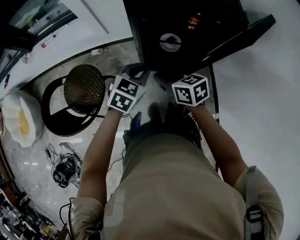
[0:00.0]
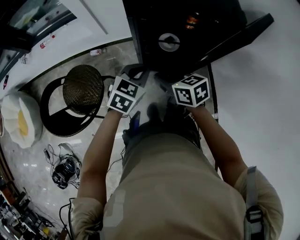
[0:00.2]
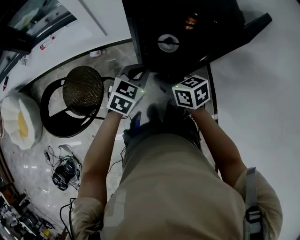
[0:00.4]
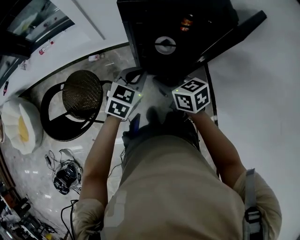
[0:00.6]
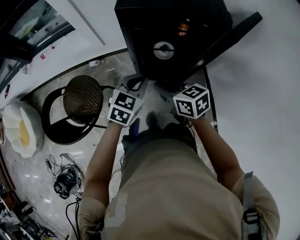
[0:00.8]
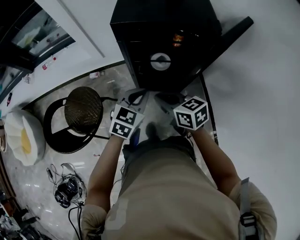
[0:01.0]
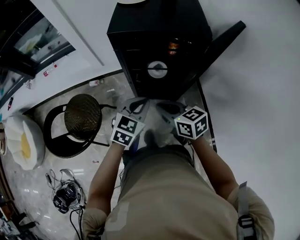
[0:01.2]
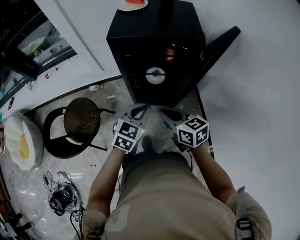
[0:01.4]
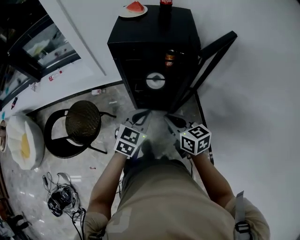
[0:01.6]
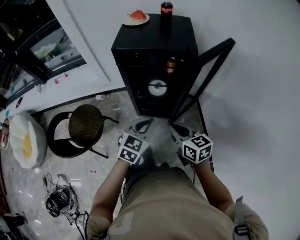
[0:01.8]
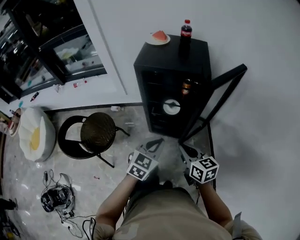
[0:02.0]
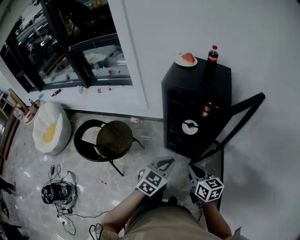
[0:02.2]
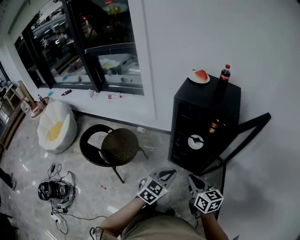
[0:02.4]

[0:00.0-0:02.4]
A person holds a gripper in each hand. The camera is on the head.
0.0 to 1.2 s: The right gripper moves to the right, backward and upward, approximately 10 cm. The left gripper moves backward, about 5 cm.
1.2 to 2.4 s: The two grippers go about 10 cm backward.

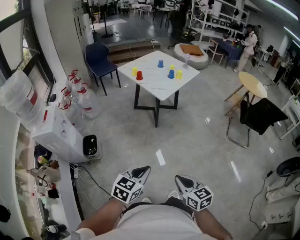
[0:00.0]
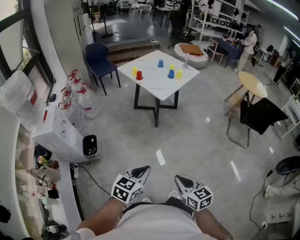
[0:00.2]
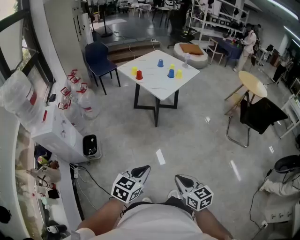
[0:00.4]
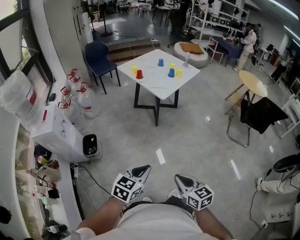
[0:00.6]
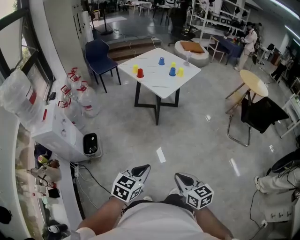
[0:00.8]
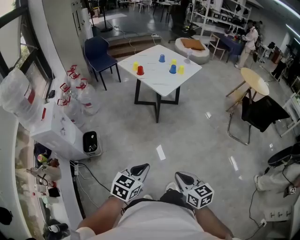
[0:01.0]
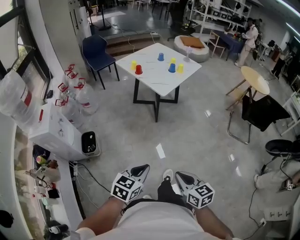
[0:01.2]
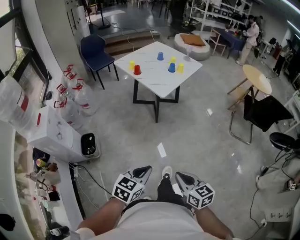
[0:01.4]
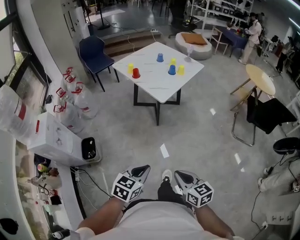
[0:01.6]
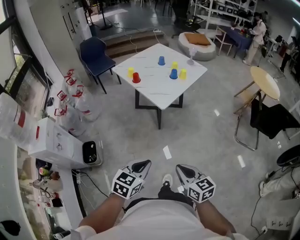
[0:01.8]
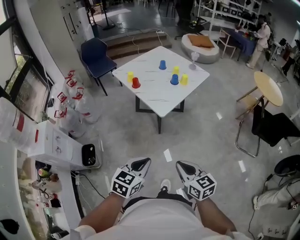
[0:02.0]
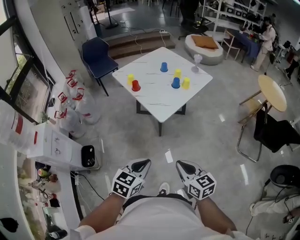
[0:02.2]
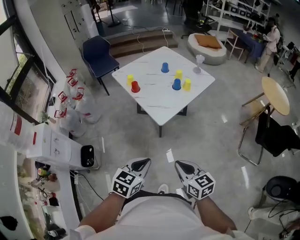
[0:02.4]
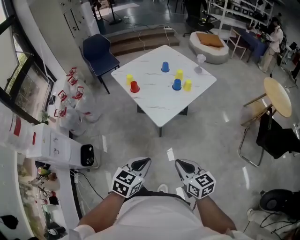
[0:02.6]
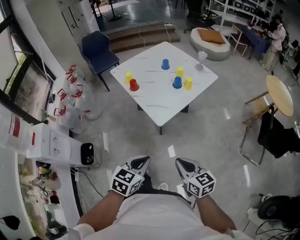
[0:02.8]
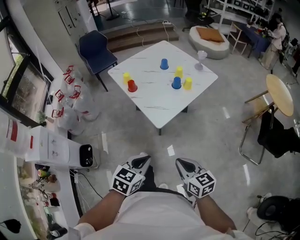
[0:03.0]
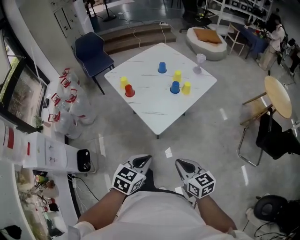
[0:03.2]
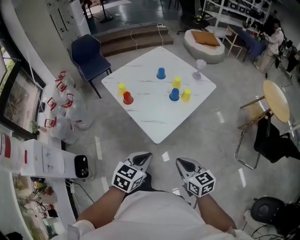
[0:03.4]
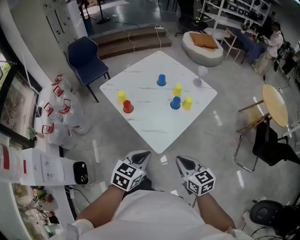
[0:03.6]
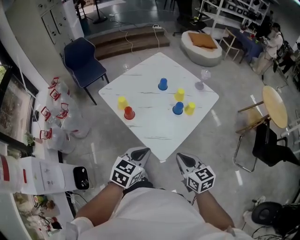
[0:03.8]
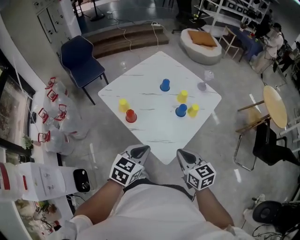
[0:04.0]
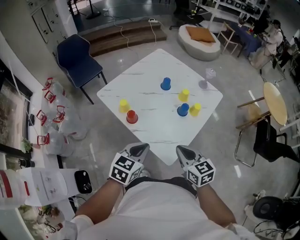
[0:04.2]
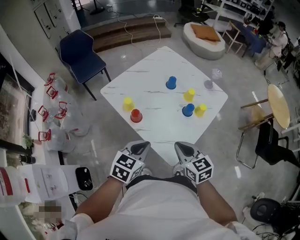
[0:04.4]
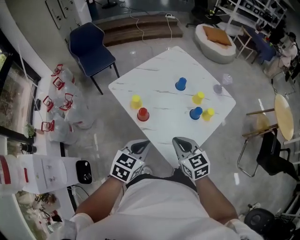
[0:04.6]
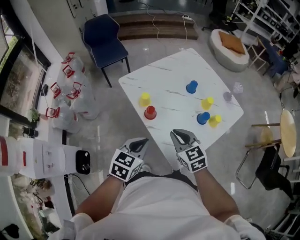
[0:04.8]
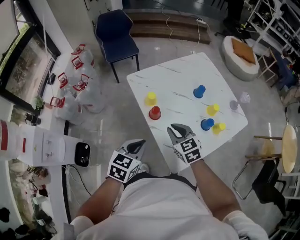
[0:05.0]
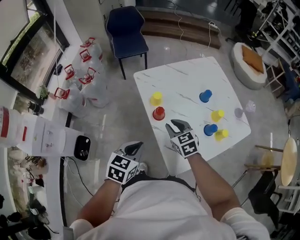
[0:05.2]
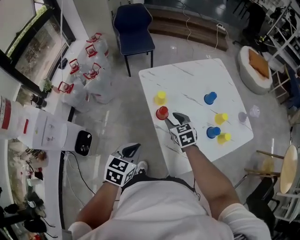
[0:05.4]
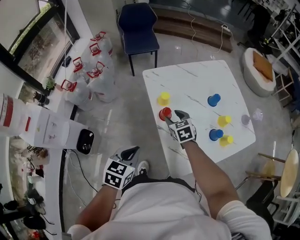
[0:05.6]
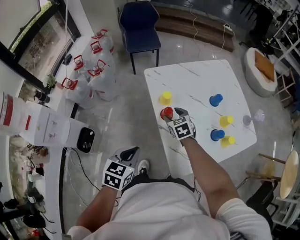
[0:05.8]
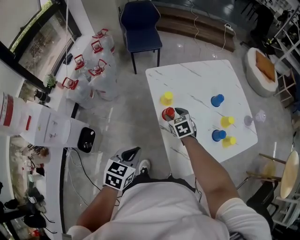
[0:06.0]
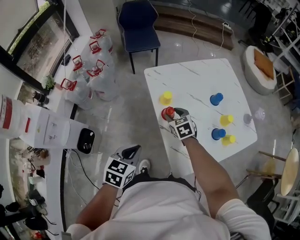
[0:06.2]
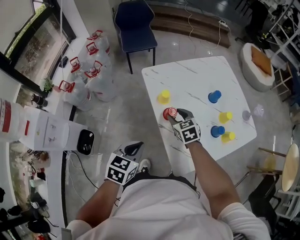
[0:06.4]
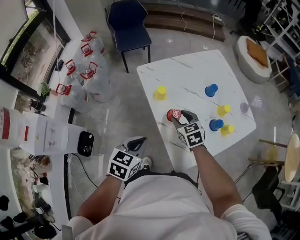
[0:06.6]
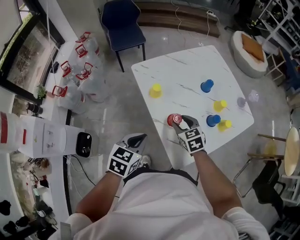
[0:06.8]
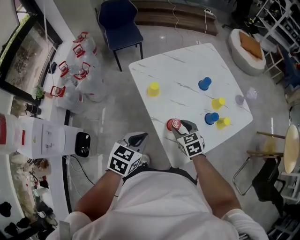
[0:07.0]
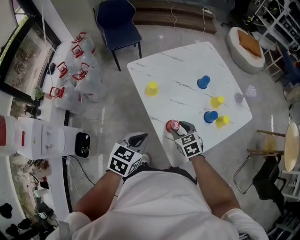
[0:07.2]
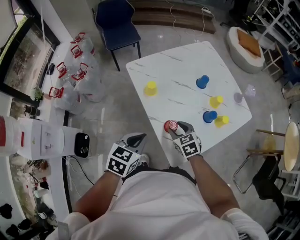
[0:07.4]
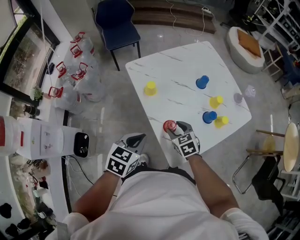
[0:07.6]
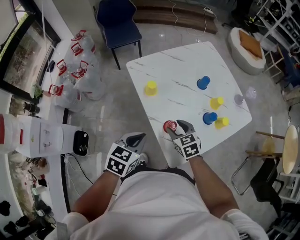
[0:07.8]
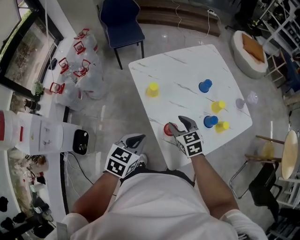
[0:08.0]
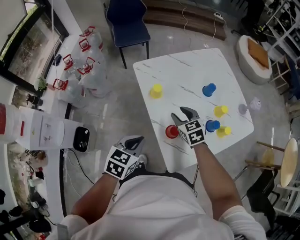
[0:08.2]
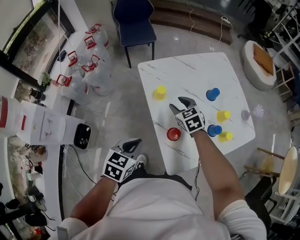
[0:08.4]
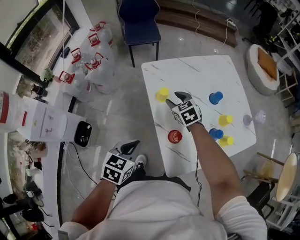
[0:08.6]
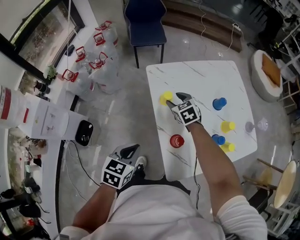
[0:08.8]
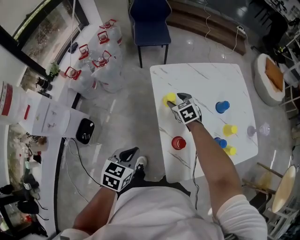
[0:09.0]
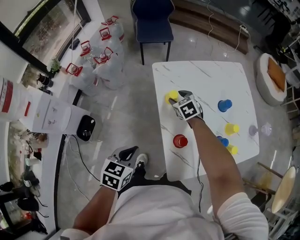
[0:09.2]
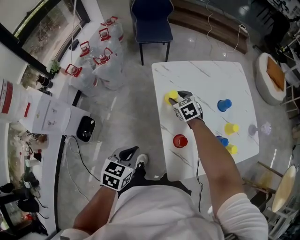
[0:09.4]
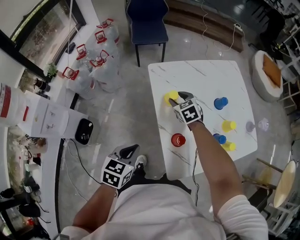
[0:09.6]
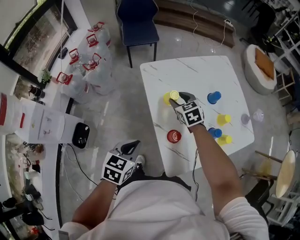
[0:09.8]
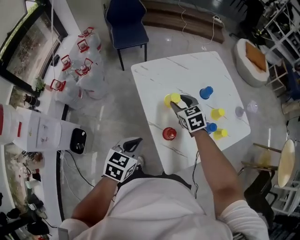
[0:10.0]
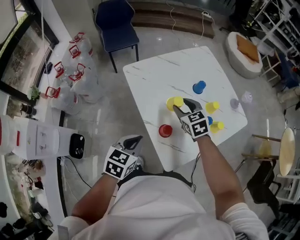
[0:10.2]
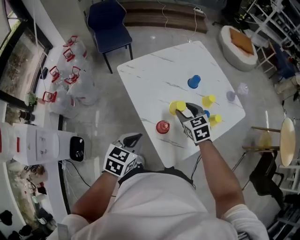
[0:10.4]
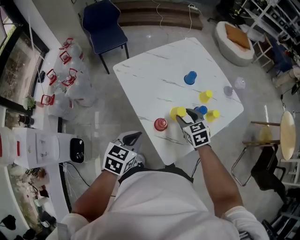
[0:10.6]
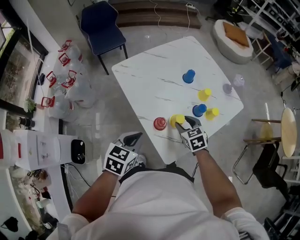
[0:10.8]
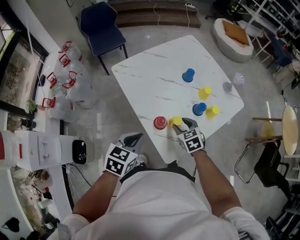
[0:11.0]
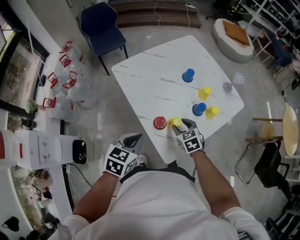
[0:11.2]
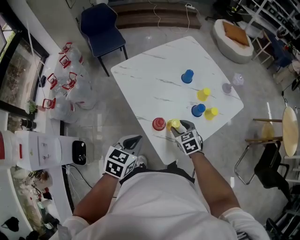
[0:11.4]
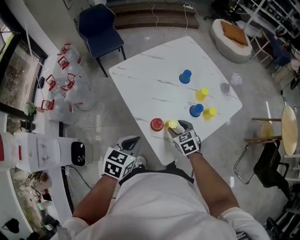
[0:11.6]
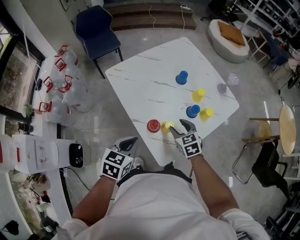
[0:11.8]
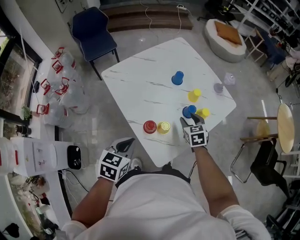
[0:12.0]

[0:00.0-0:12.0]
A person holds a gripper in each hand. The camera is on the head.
0.0 to 1.6 s: The grippers both shift forward by some 15 cm.
1.6 to 3.0 s: The two grippers go about 30 cm forward.
3.0 to 4.4 s: Both grippers move forward and to the left, roughly 35 cm.
4.4 to 6.0 s: The left gripper moves about 15 cm, and swivels about 40 degrees, while the right gripper changes place by some 30 cm, turns by approximately 40 degrees, and opens its fingers.
6.0 to 7.6 s: The left gripper heads to the right, covering about 5 cm, while the right gripper shifts roughly 15 cm backward and to the right.
7.6 to 9.0 s: The right gripper moves forward and to the left, about 25 cm. Meanwhile the left gripper is displaced to the left by roughly 5 cm, and rotates some 20 degrees.
9.0 to 10.4 s: The right gripper moves to the right, backward and upward, approximately 25 cm, and swivels some 20 degrees; the left gripper shifts some 10 cm to the right, and changes its angle by some 20 degrees.
10.4 to 12.0 s: The right gripper moves to the right and downward, some 15 cm.

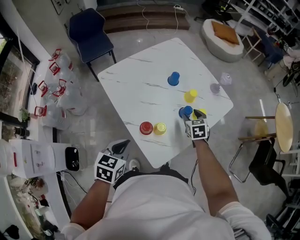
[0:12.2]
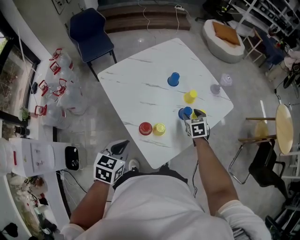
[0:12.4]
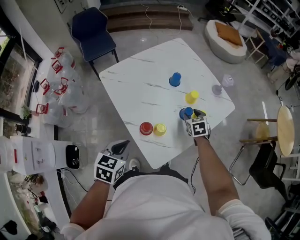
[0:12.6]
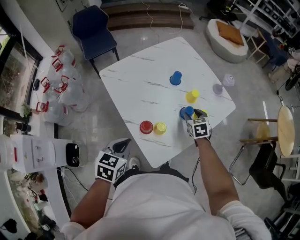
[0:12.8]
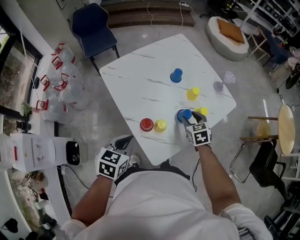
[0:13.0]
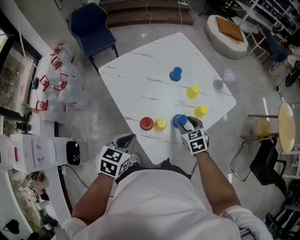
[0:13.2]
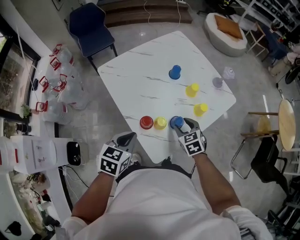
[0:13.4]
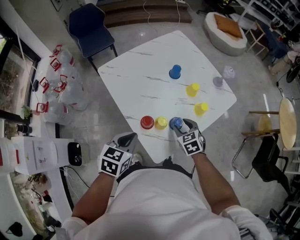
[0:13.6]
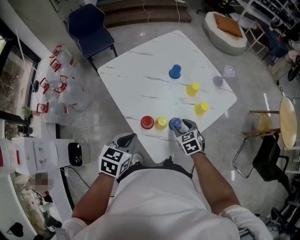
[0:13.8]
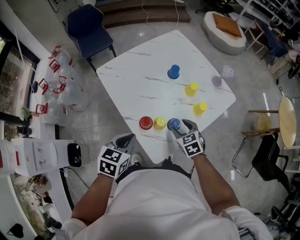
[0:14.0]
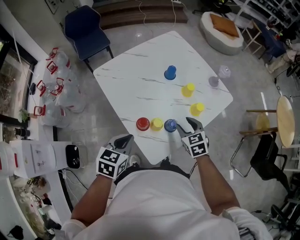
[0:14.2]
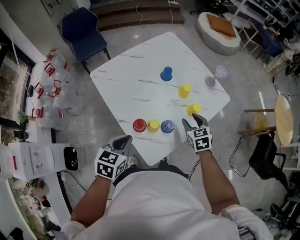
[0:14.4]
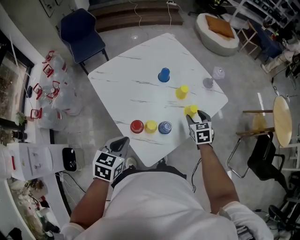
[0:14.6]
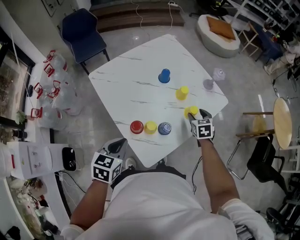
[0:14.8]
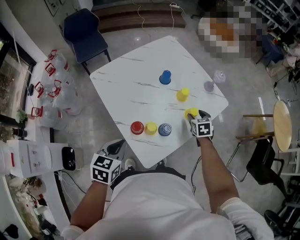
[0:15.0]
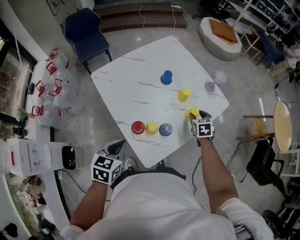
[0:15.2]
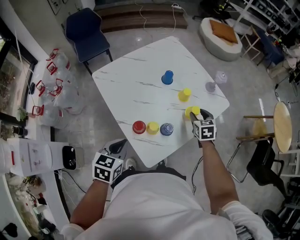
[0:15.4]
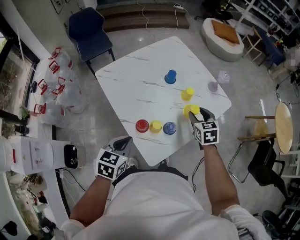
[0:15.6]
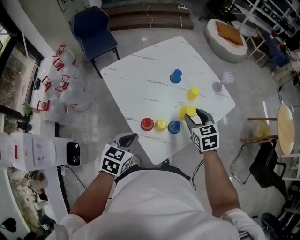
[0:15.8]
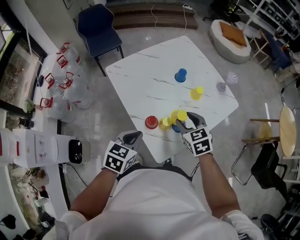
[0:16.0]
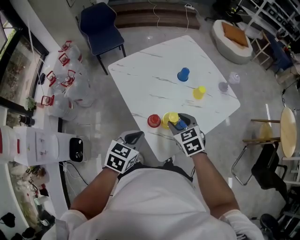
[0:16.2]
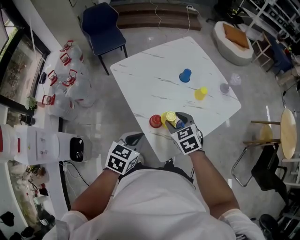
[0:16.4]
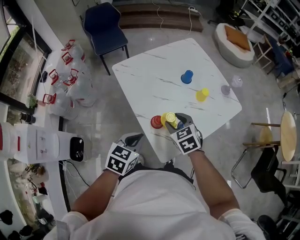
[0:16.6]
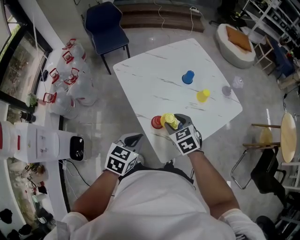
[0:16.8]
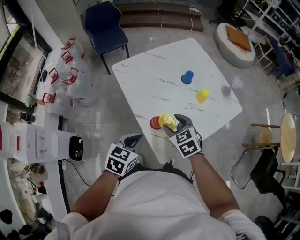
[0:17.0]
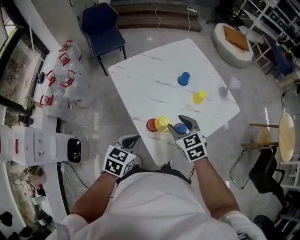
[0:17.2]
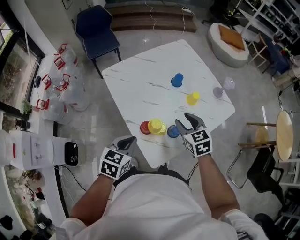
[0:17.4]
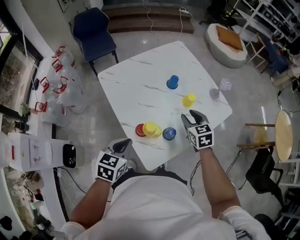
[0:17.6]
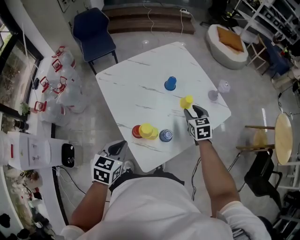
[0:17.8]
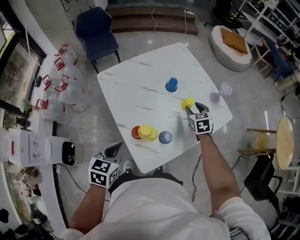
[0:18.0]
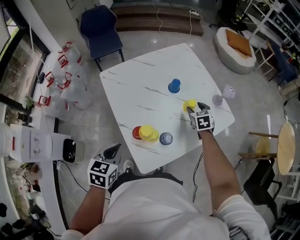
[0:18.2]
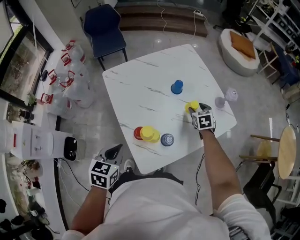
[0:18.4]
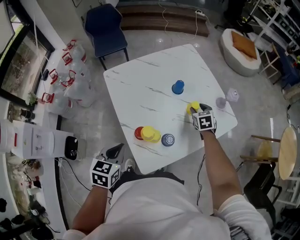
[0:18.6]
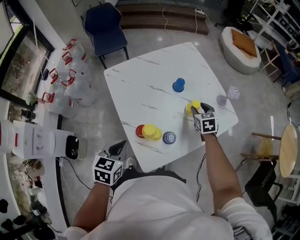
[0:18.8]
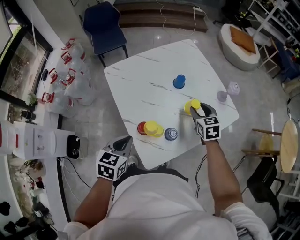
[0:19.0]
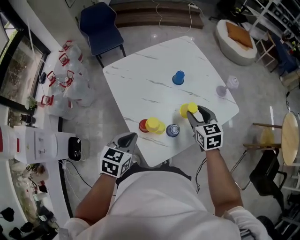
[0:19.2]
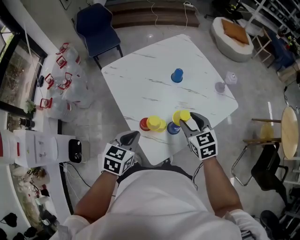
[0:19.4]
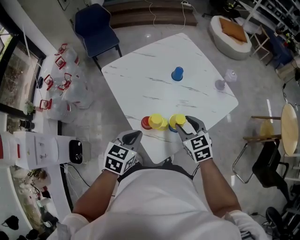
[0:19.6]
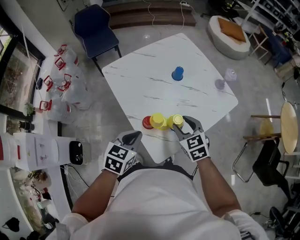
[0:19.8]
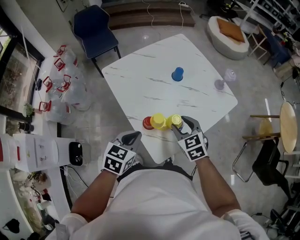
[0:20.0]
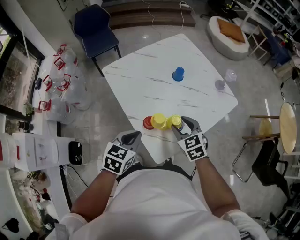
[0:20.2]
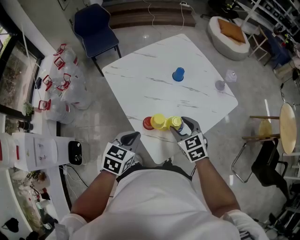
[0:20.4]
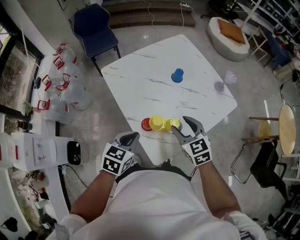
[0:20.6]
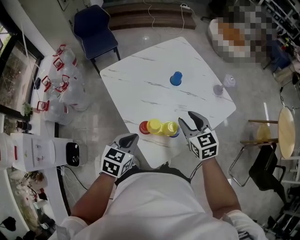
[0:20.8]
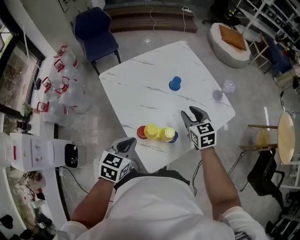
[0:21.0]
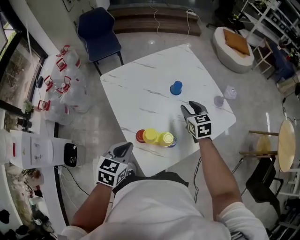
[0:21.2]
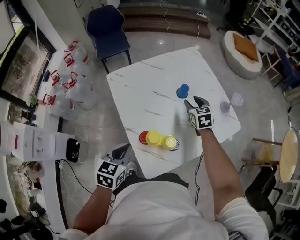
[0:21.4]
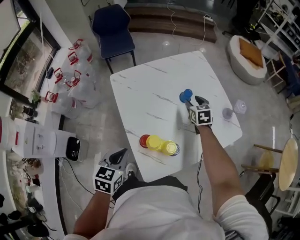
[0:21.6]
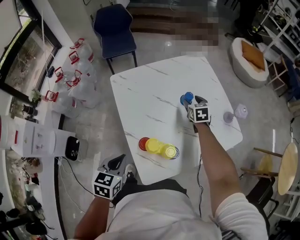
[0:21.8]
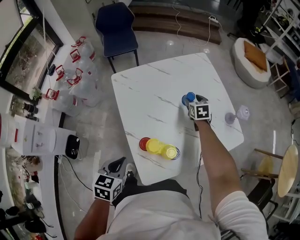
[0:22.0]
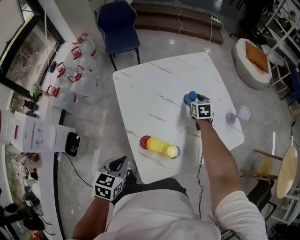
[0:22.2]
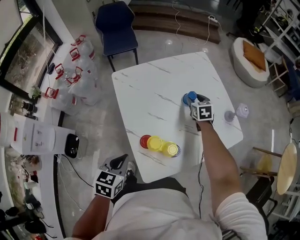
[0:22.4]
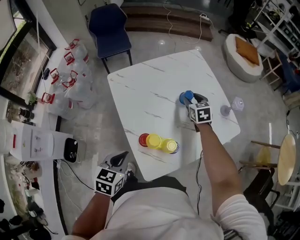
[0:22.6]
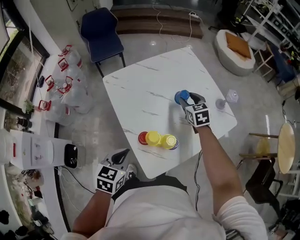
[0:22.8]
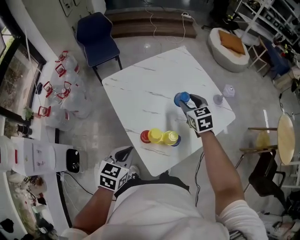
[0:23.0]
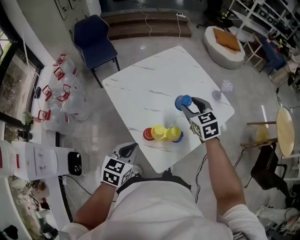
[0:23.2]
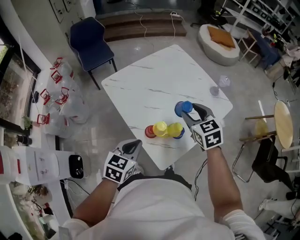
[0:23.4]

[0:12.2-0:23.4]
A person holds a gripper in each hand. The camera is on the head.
12.2 to 13.8 s: The right gripper heads backward and to the left, covering about 10 cm.
13.8 to 15.4 s: The right gripper moves to the right and forward, roughly 15 cm, and changes its angle by about 20 degrees.
15.4 to 17.0 s: The right gripper is displaced to the left and backward by about 25 cm, and swivels some 30 degrees.
17.0 to 18.6 s: The right gripper travels to the right, forward and downward by about 30 cm.
18.6 to 20.2 s: The right gripper moves backward, to the left and upward, some 25 cm.
20.2 to 21.8 s: The right gripper travels forward by roughly 30 cm, while the left gripper turns by roughly 20 degrees.
21.8 to 23.4 s: The left gripper rotates roughly 30 degrees. The right gripper shifts some 30 cm backward and upward.
